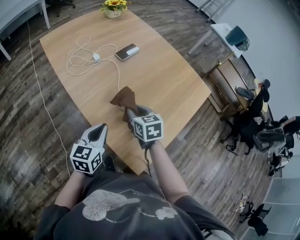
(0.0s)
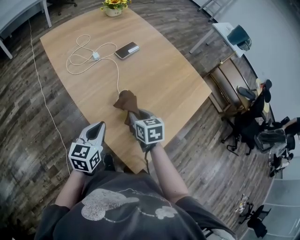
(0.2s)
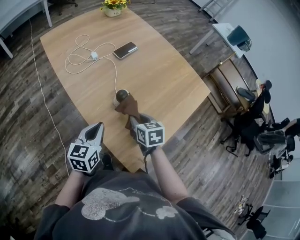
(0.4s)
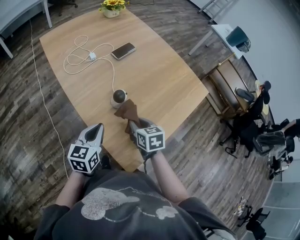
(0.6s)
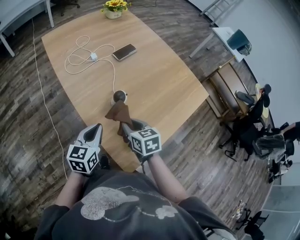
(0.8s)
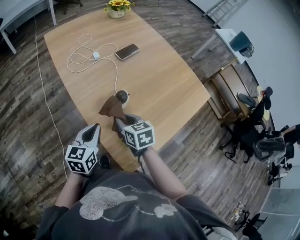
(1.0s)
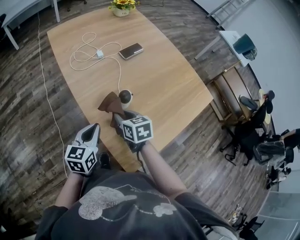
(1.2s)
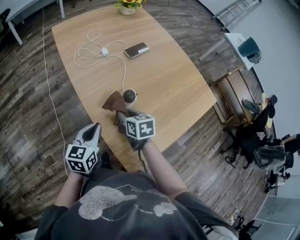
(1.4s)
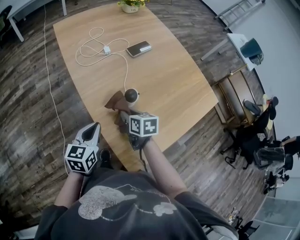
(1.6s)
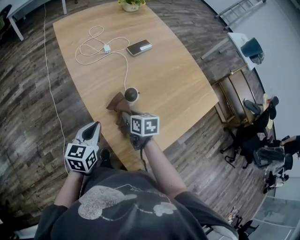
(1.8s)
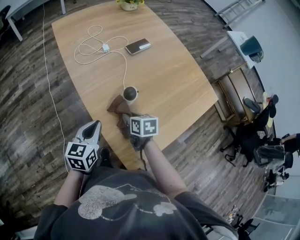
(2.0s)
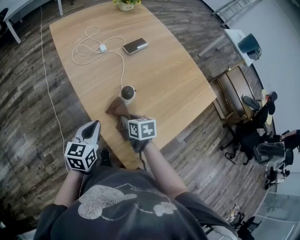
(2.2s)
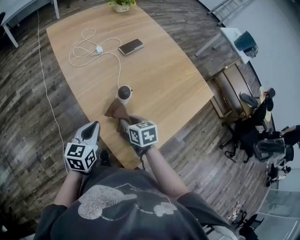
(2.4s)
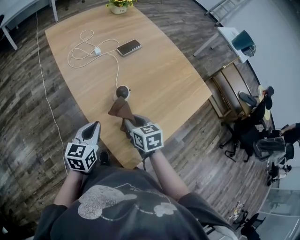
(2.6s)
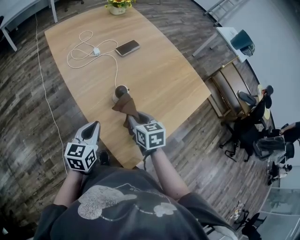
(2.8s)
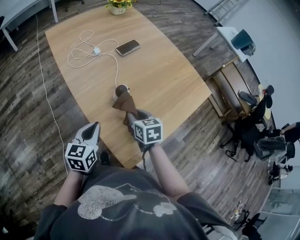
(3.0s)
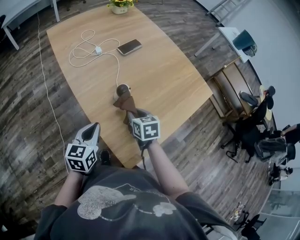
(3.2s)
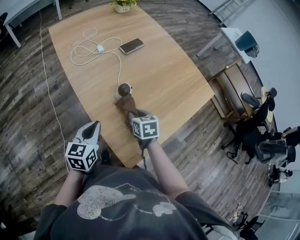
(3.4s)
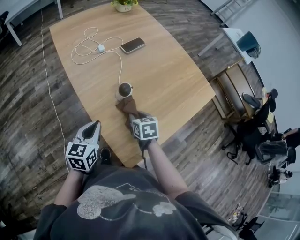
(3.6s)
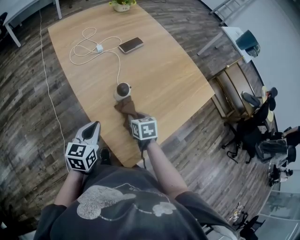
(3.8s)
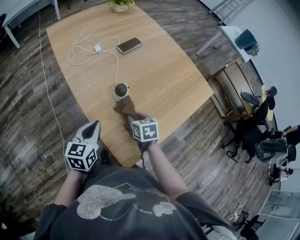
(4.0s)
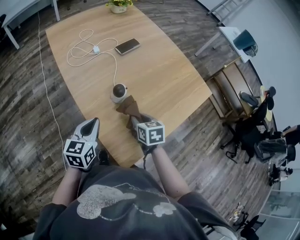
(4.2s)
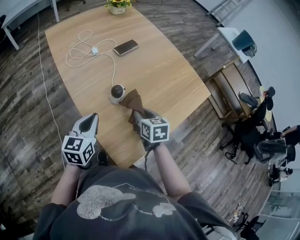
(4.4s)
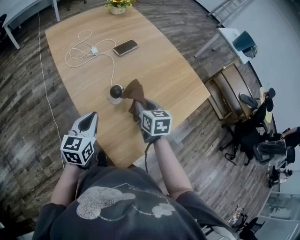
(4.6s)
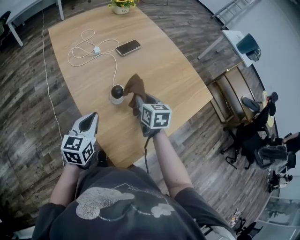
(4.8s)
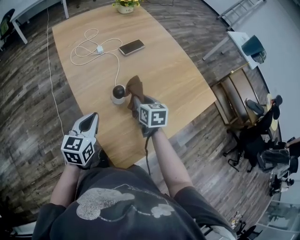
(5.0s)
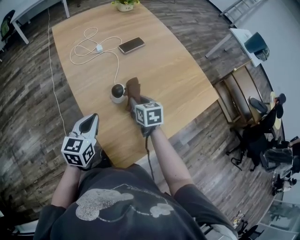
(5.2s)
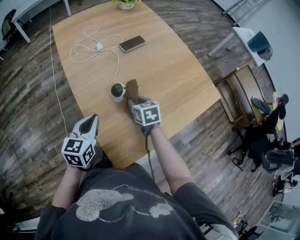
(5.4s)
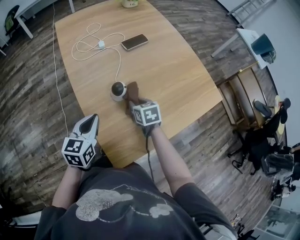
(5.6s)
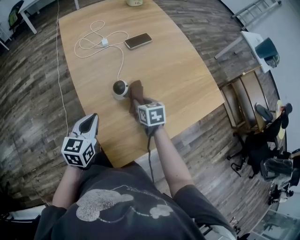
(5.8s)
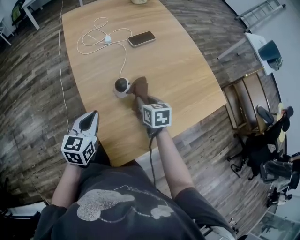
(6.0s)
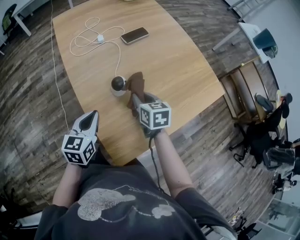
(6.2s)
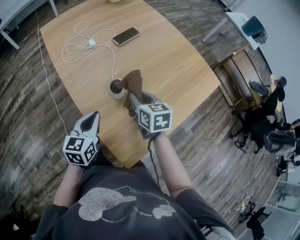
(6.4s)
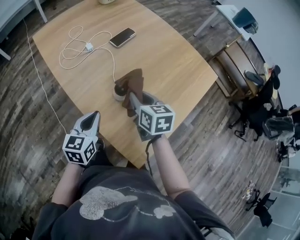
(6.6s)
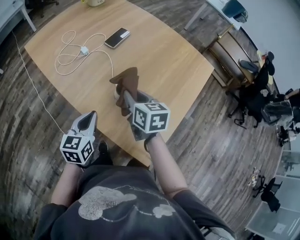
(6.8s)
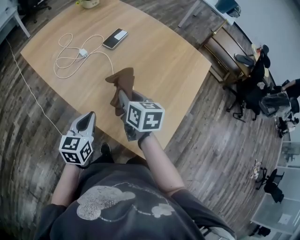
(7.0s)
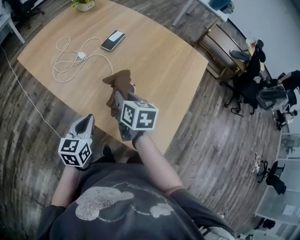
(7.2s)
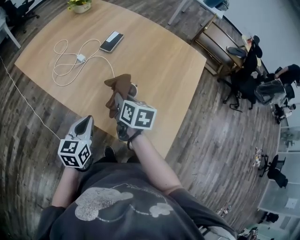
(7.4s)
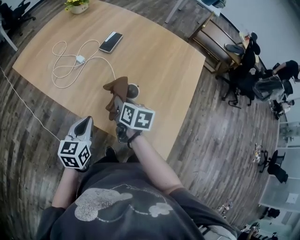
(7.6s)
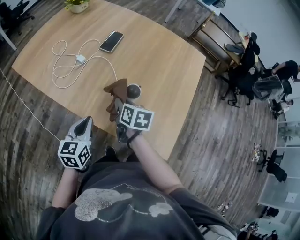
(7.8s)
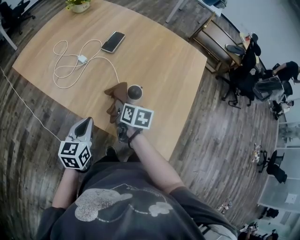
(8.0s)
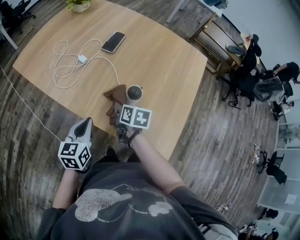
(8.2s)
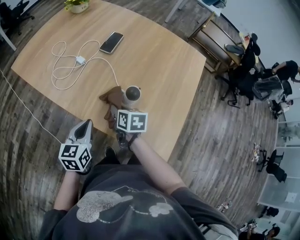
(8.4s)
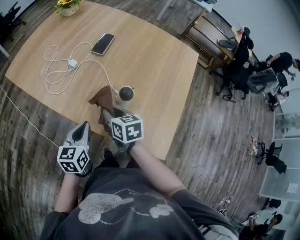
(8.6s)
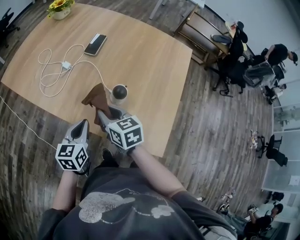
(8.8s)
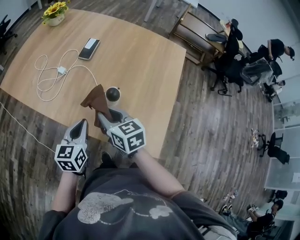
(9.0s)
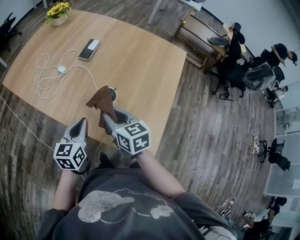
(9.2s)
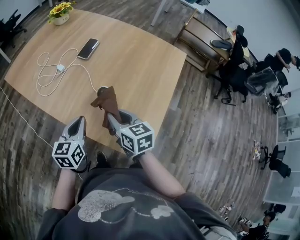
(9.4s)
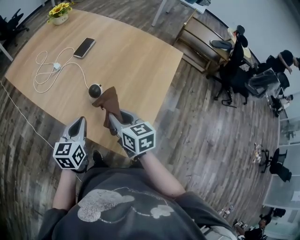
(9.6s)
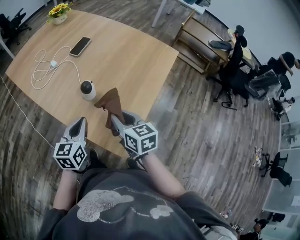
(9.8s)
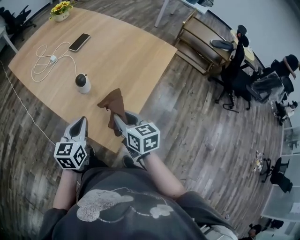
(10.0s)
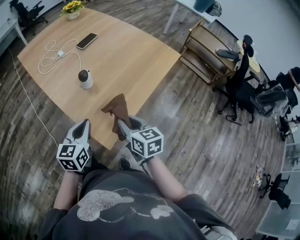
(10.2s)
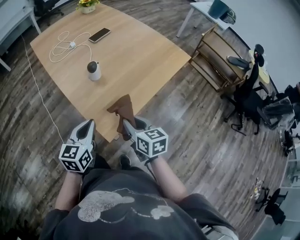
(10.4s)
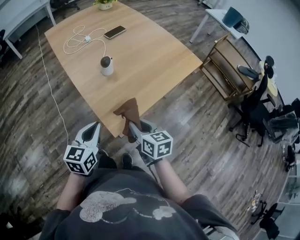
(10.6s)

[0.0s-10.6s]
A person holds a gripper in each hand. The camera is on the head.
0.0s to 1.6s: The right gripper shifts about 5 cm downward.
1.6s to 3.0s: The right gripper travels to the right by approximately 5 cm.
3.0s to 4.6s: The right gripper travels to the right by approximately 5 cm, and travels downward and back again, approximately 5 cm each way. Meanwhile the left gripper moves roughly 5 cm.
4.6s to 6.0s: The right gripper shifts some 5 cm downward.
6.0s to 7.6s: The left gripper moves approximately 15 cm, and turns by approximately 30 degrees, while the right gripper moves roughly 10 cm upward and comes back, and twists some 40 degrees clockwise, seen from behind.
7.6s to 9.0s: The right gripper moves upward, about 5 cm, and changes its angle by roughly 30 degrees.
9.0s to 10.6s: The right gripper moves to the right and backward, roughly 30 cm. Meanwhile the left gripper travels backward and to the right by roughly 30 cm, and changes its angle by about 20 degrees.

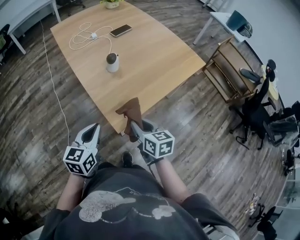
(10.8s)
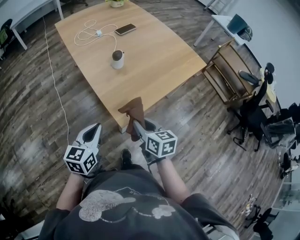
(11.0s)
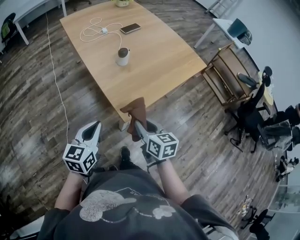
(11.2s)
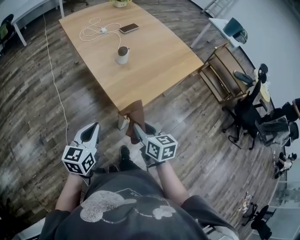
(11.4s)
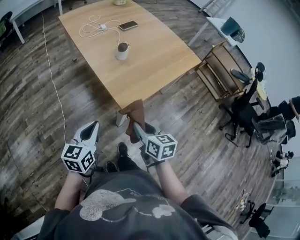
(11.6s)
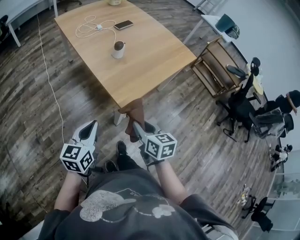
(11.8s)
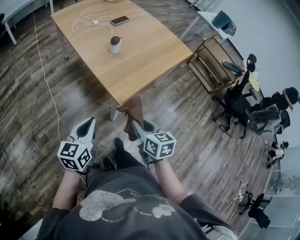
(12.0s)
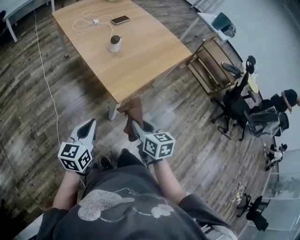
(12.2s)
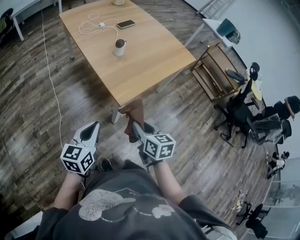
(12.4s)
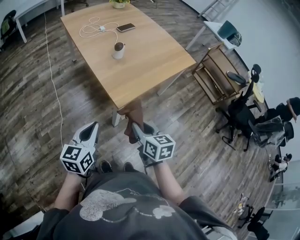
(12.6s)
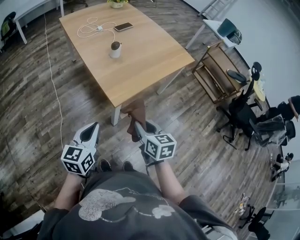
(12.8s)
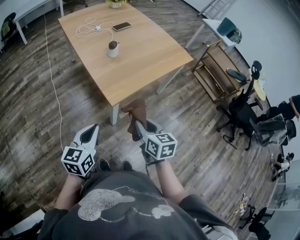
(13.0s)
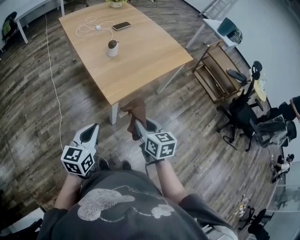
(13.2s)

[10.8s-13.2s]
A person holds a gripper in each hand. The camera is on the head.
10.8s to 12.0s: The left gripper moves backward and to the left, about 10 cm. Meanwhile the right gripper travels backward by approximately 15 cm.
12.0s to 13.2s: The grippers both shift to the right by about 5 cm.

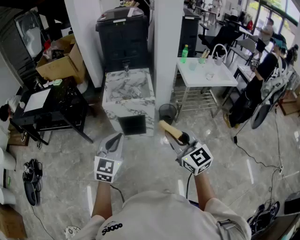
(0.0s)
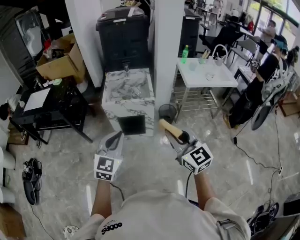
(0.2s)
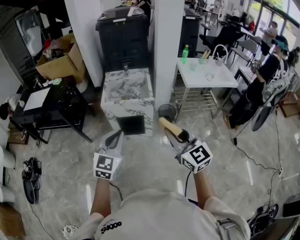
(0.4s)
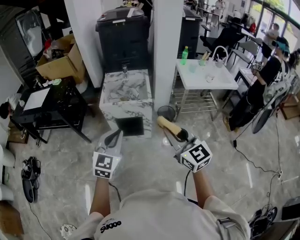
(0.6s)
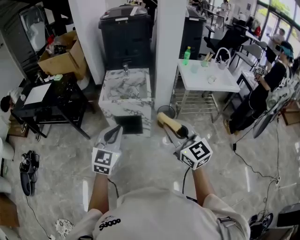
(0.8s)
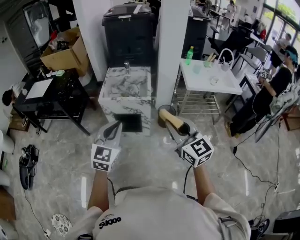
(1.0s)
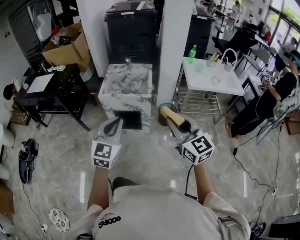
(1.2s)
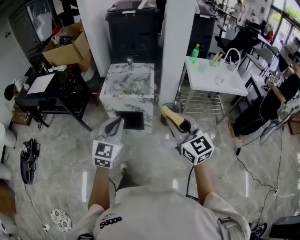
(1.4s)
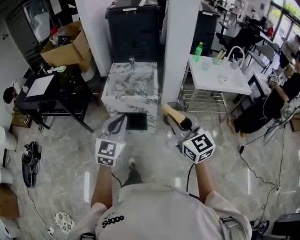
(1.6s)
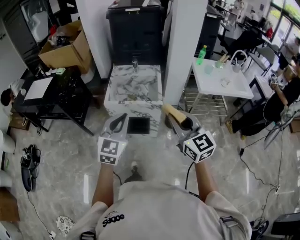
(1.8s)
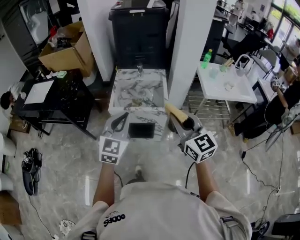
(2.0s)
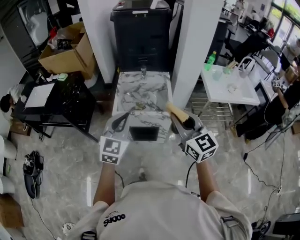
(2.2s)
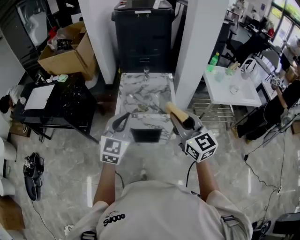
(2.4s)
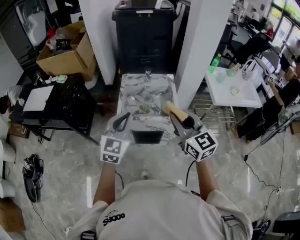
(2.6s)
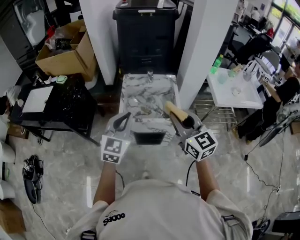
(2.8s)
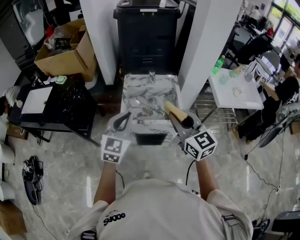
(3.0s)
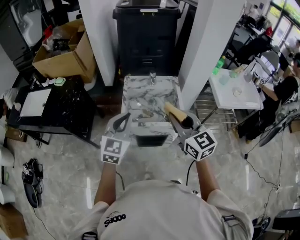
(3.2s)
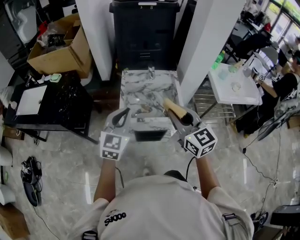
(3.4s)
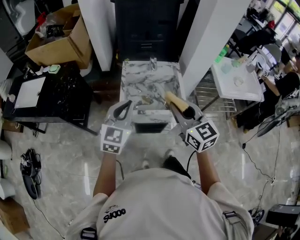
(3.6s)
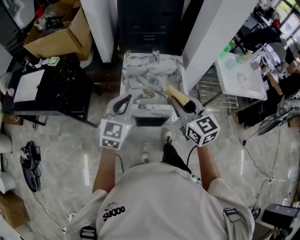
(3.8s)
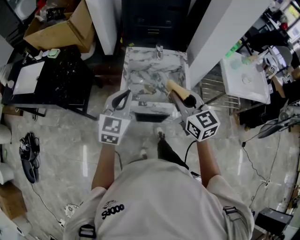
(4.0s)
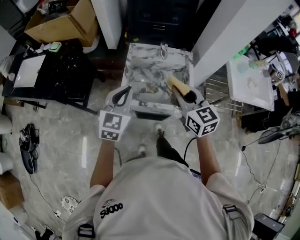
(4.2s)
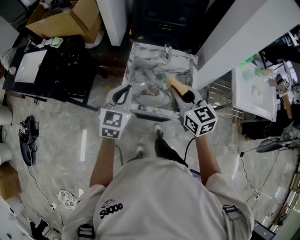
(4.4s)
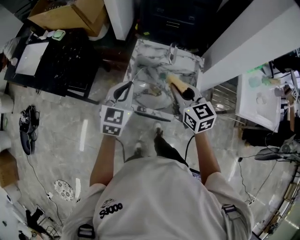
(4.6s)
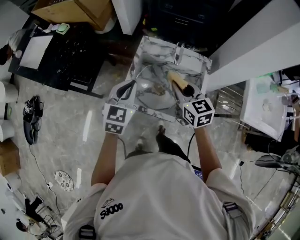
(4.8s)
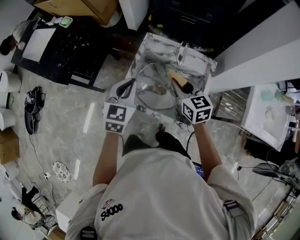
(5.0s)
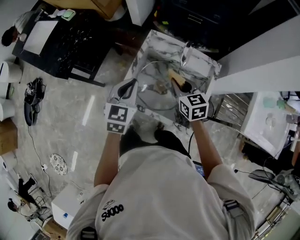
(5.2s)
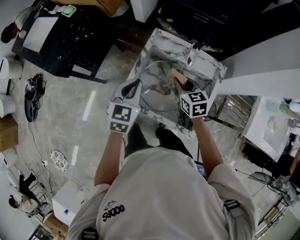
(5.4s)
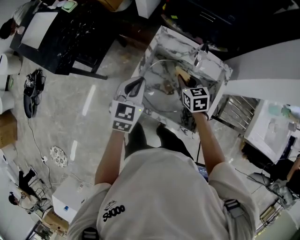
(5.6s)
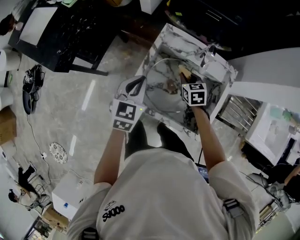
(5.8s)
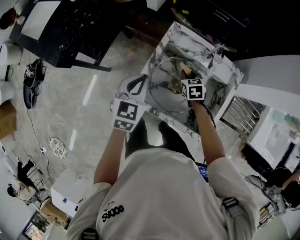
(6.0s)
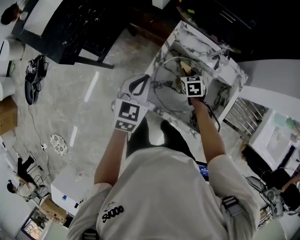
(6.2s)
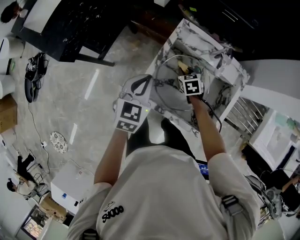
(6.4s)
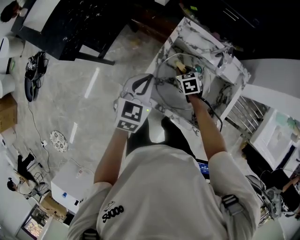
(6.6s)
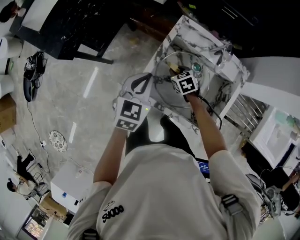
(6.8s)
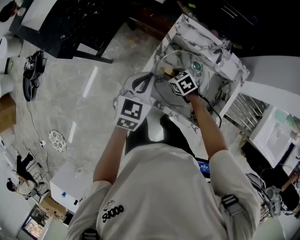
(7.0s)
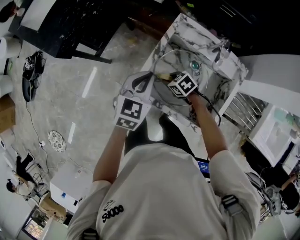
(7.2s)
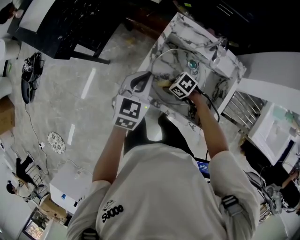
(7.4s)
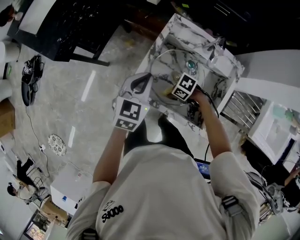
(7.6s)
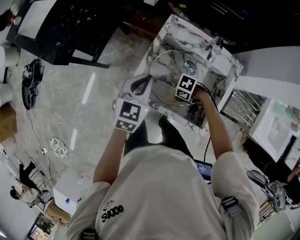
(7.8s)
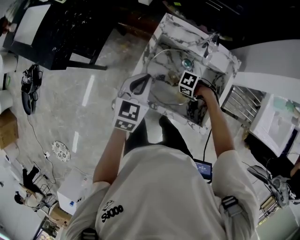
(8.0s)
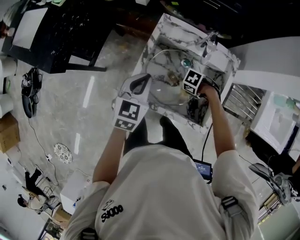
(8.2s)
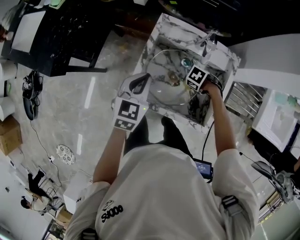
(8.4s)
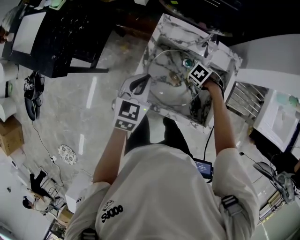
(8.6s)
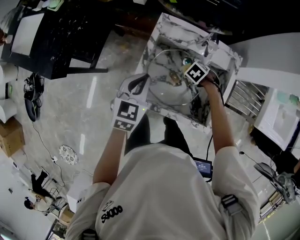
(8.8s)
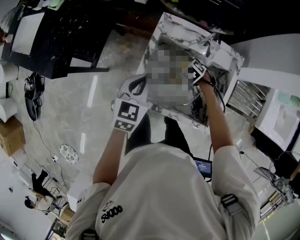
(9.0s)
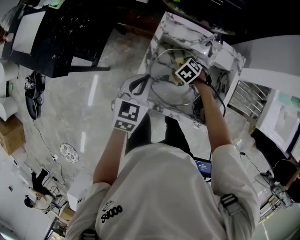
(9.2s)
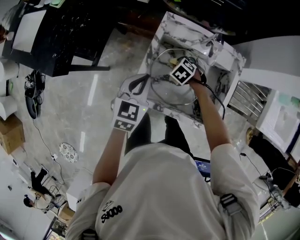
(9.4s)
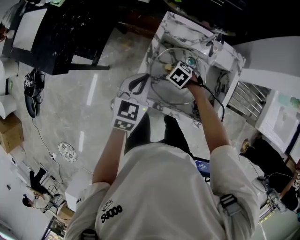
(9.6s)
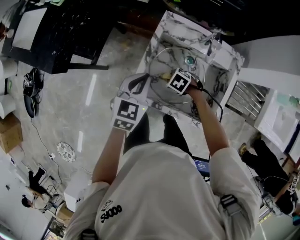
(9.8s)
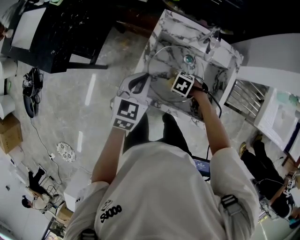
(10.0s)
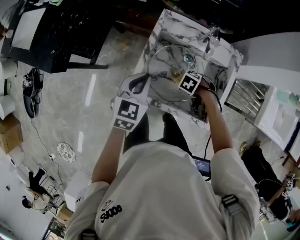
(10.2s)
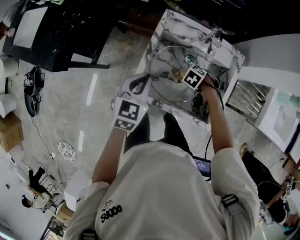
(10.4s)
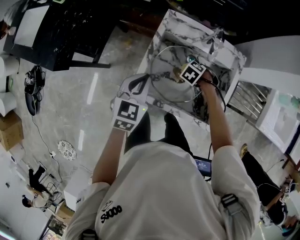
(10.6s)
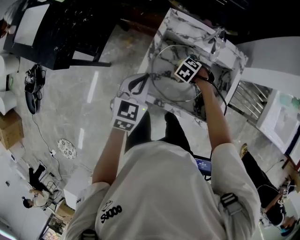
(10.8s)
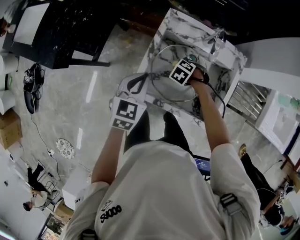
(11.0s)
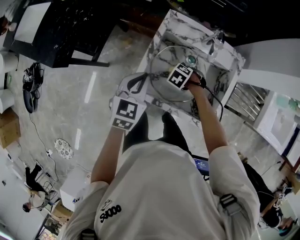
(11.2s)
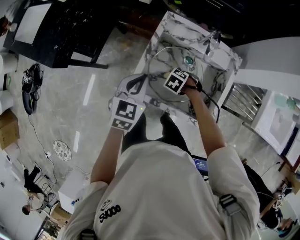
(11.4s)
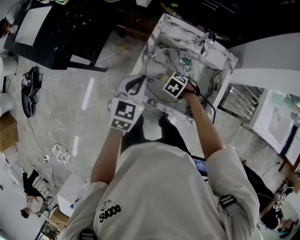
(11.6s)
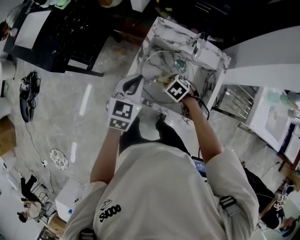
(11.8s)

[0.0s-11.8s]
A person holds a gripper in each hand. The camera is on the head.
0.0s to 1.4s: Both grippers move to the right and forward, approximately 10 cm.
1.4s to 3.0s: Both grippers move forward and to the left, some 35 cm.
3.0s to 4.4s: Both grippers travel together forward and downward, some 20 cm.
4.4s to 6.0s: The right gripper travels downward and forward by some 40 cm, and points its fingers roughly 30 degrees further downward; the left gripper travels downward and forward by about 15 cm, and swivels some 20 degrees.
6.0s to 7.4s: The right gripper moves roughly 20 cm, and turns by some 50 degrees.
7.4s to 8.8s: The right gripper moves some 20 cm, and points its fingers roughly 30 degrees further downward.
10.4s to 11.8s: The right gripper changes place by roughly 10 cm.
